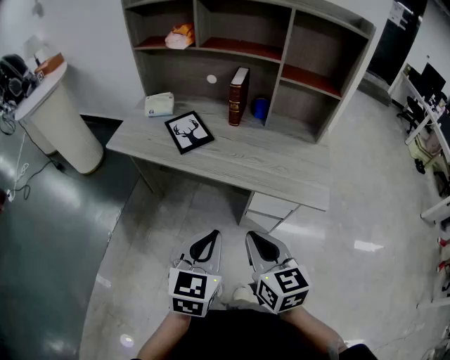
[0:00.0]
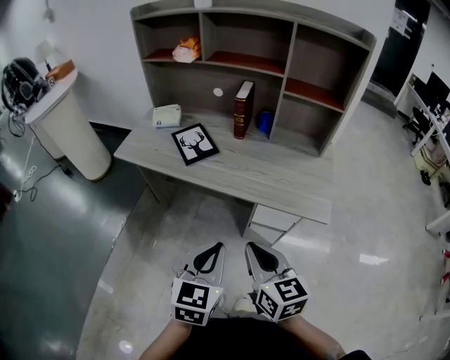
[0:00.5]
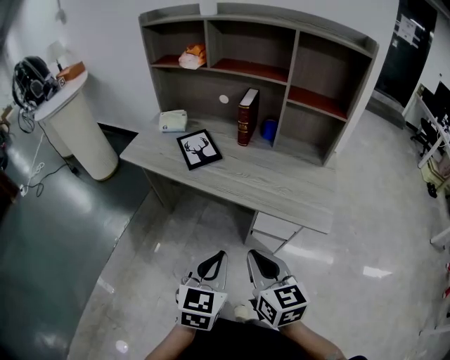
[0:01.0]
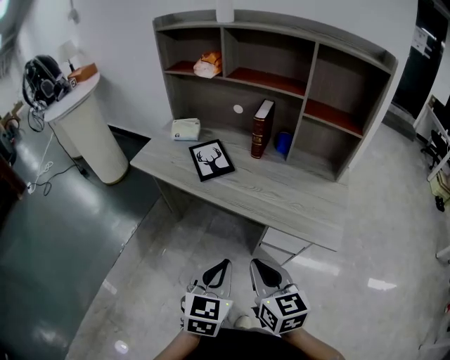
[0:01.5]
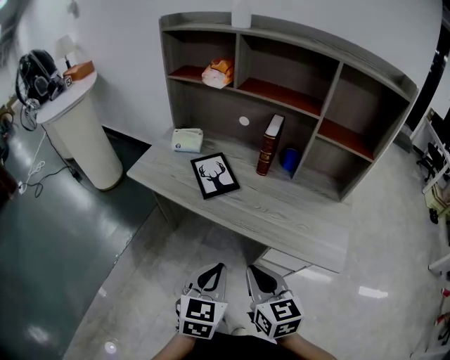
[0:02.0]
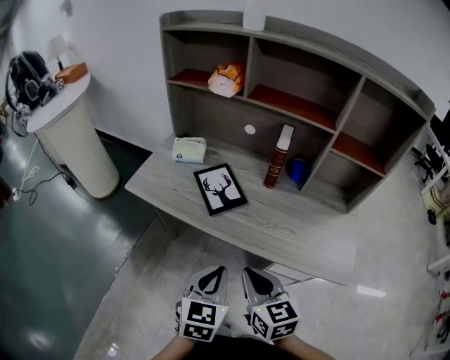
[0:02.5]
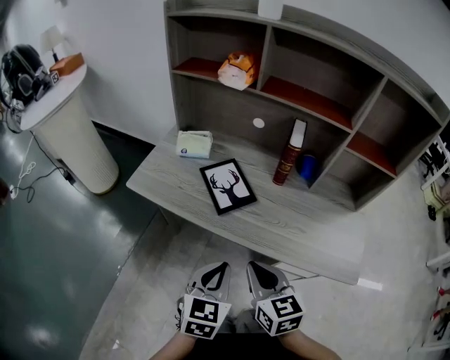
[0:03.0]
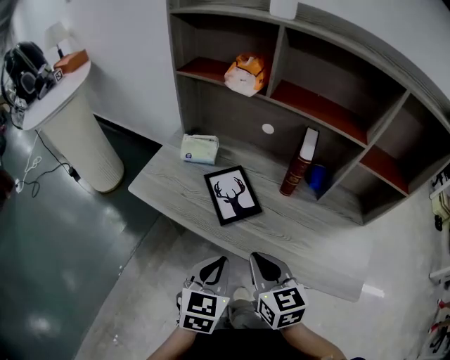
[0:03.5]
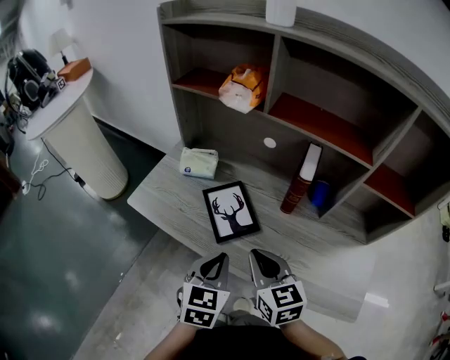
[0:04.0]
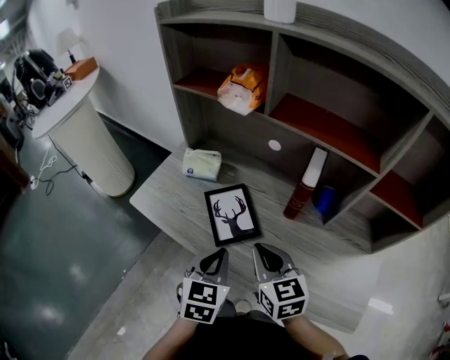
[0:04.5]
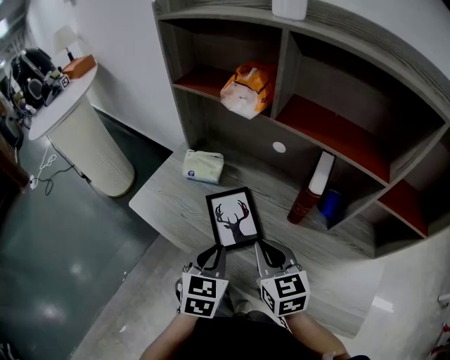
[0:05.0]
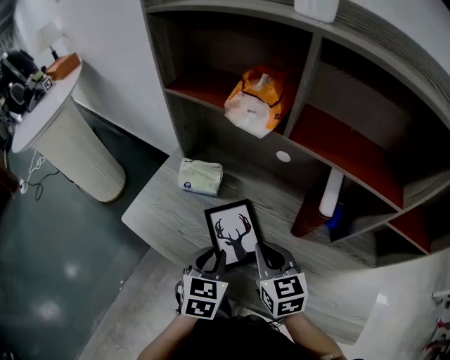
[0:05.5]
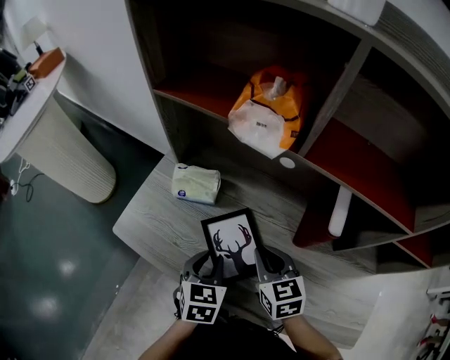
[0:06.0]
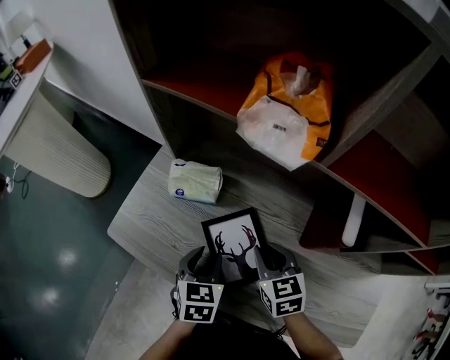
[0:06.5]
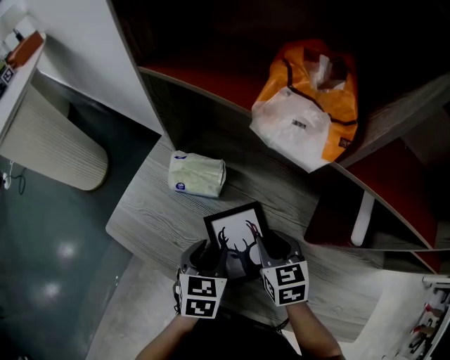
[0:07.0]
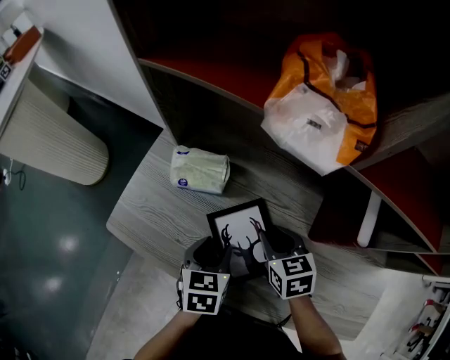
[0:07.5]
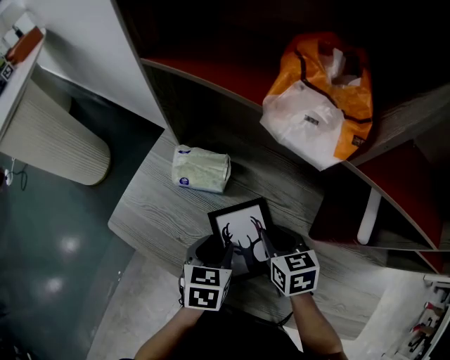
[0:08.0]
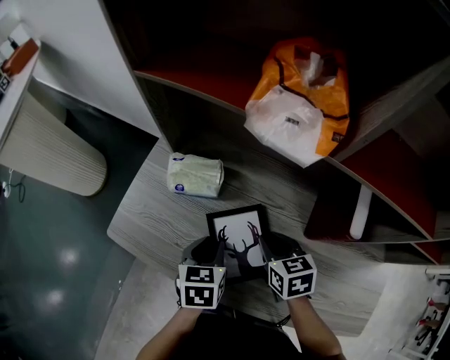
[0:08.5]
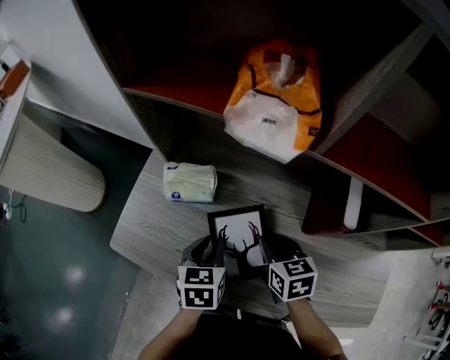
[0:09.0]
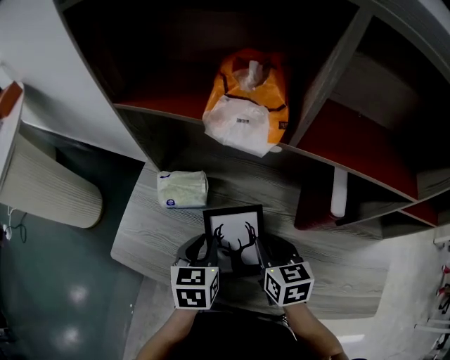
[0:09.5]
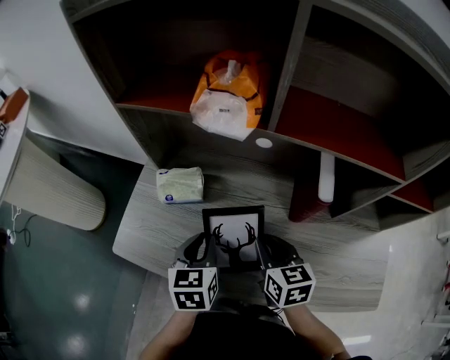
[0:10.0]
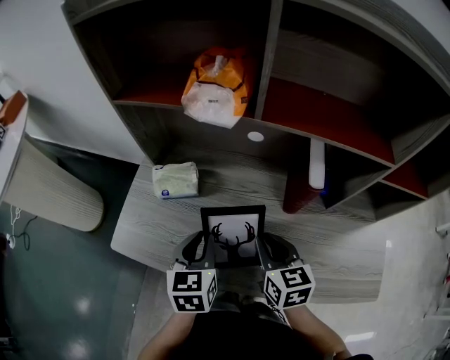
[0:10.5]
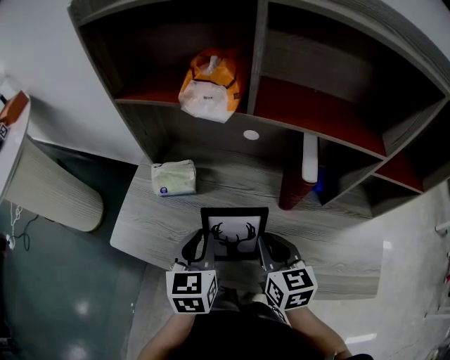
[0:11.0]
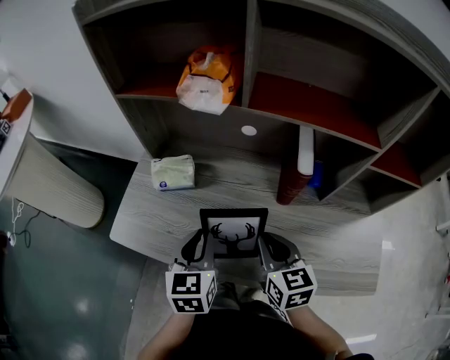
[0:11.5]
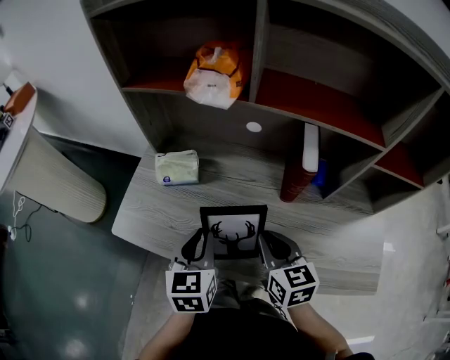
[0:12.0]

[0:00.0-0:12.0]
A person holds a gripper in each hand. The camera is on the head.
0:00.0 to 0:02.0: Both grippers travel together forward, roughly 10 cm.
0:02.0 to 0:04.0: Both grippers travel together forward, approximately 25 cm.
0:04.0 to 0:06.0: Both grippers travel together forward and downward, about 20 cm. The left gripper opens.
0:06.0 to 0:08.0: The left gripper shifts by roughly 5 cm, and opens. Meanwhile the right gripper moves downward, about 5 cm.
0:08.0 to 0:10.0: The right gripper is displaced upward and backward by some 10 cm, and changes its angle by roughly 20 degrees. The left gripper heads upward, covering about 10 cm, and closes.
0:10.0 to 0:12.0: The two grippers go some 5 cm backward.

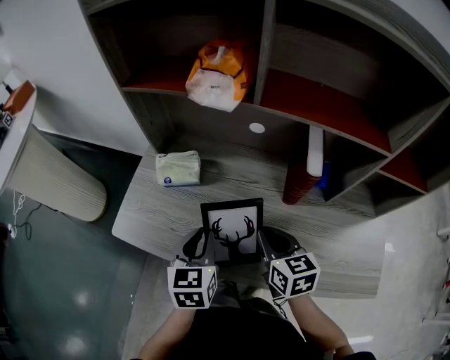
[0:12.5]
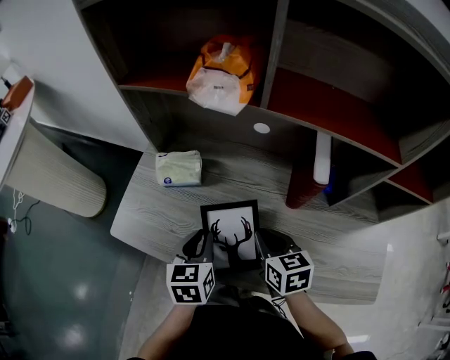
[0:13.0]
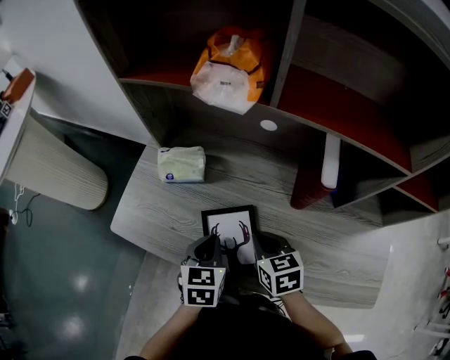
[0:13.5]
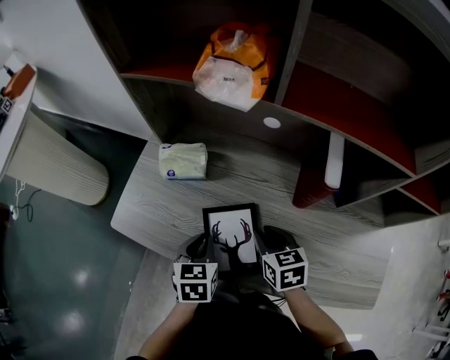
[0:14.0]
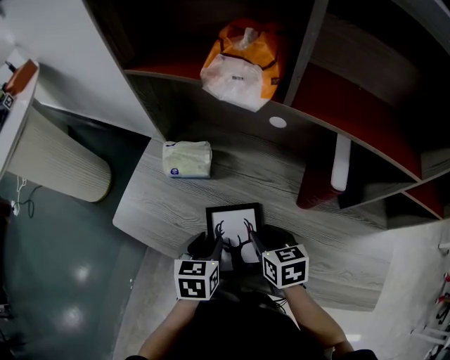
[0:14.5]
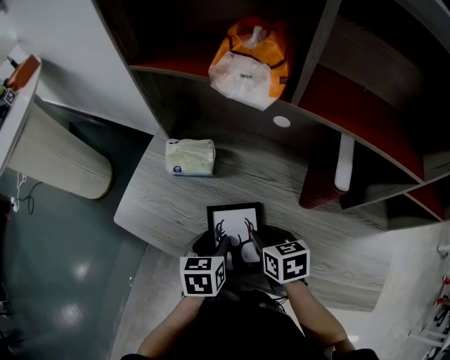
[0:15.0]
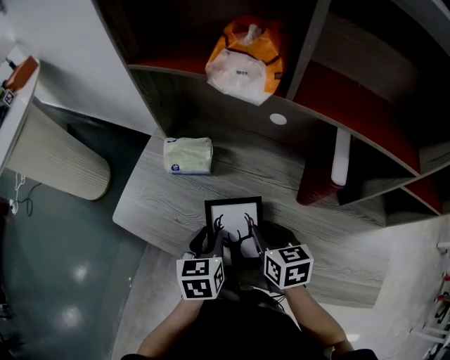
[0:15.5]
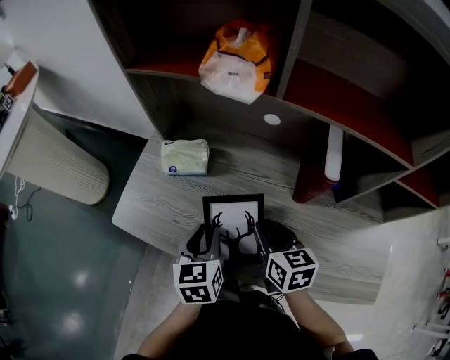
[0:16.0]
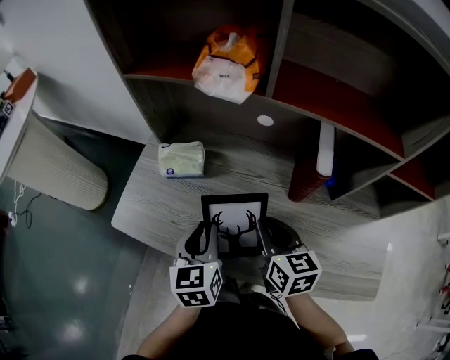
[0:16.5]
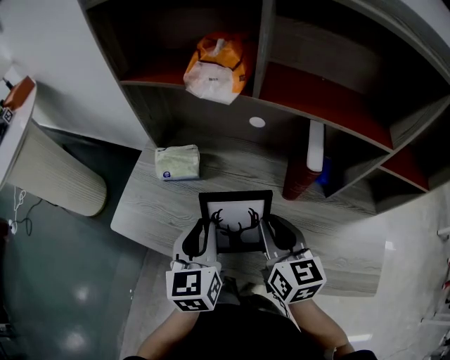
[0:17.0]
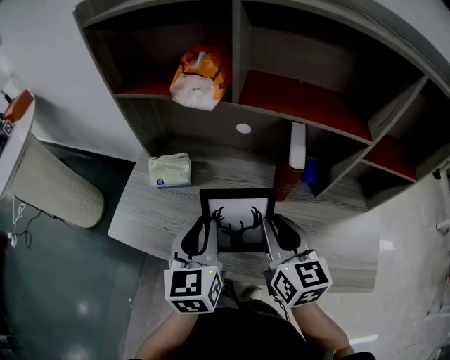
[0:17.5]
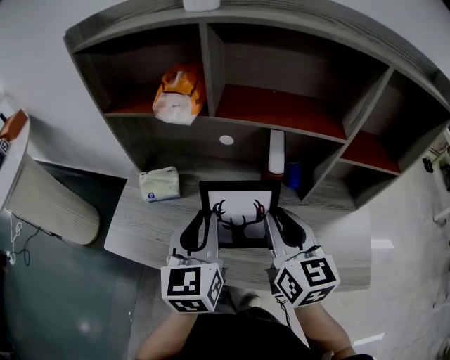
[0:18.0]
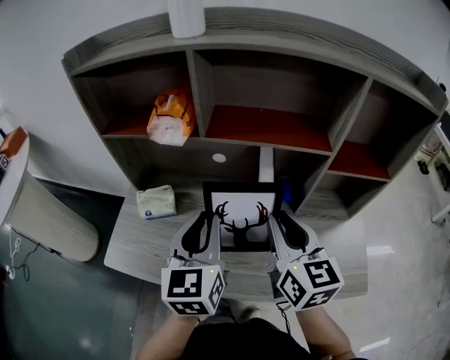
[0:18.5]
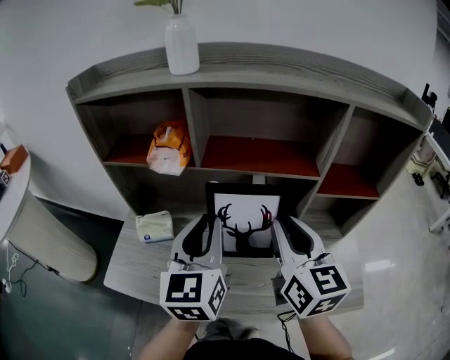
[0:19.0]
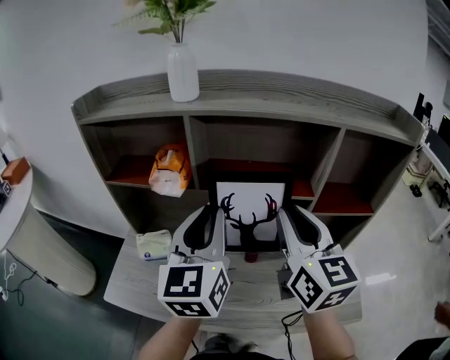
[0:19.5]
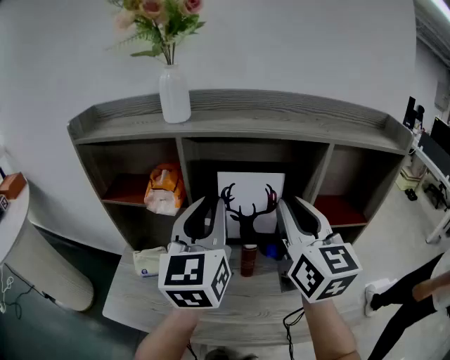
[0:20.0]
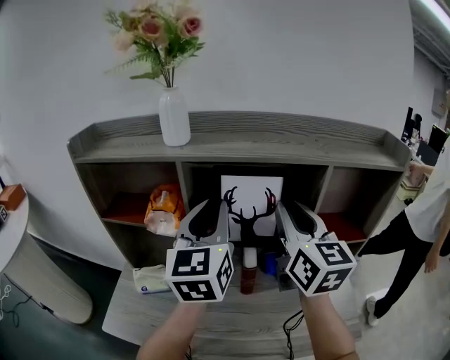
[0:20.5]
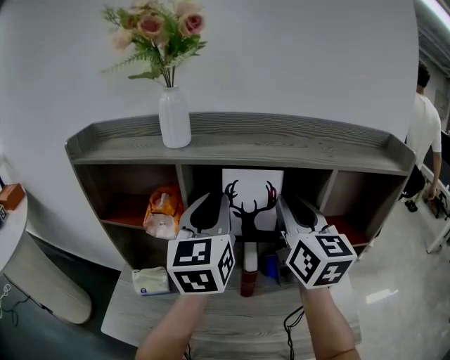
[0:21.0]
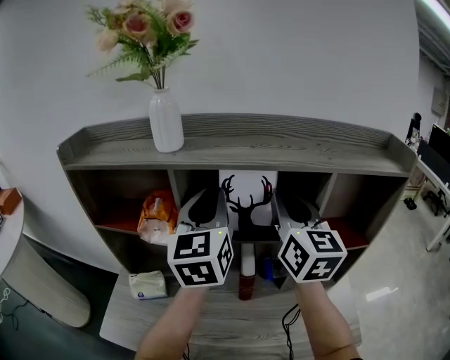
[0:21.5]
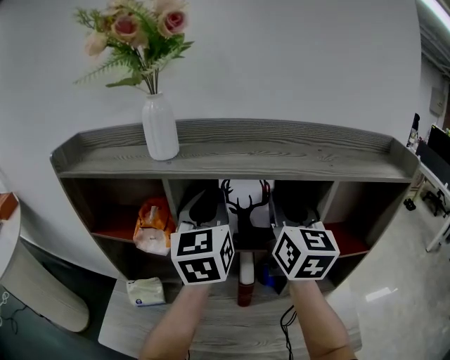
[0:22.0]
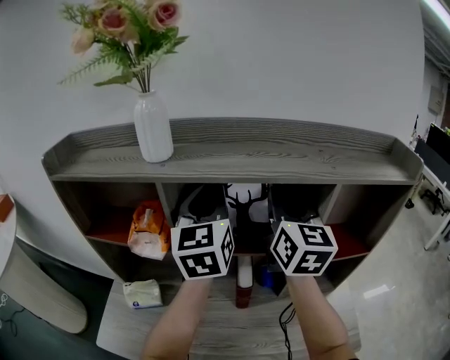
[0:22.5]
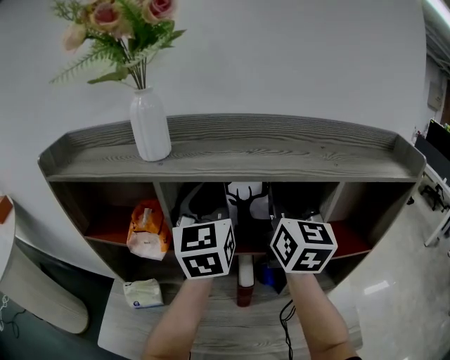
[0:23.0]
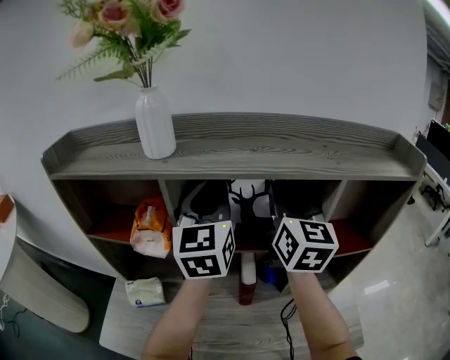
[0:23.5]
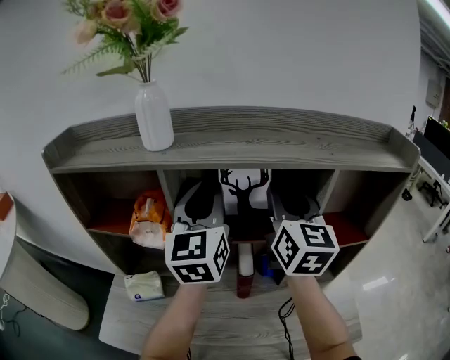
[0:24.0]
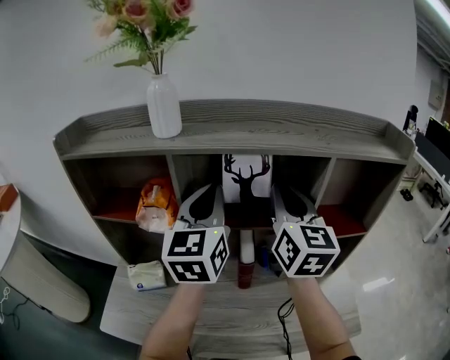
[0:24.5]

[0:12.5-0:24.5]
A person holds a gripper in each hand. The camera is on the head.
0:12.5 to 0:14.5: Both grippers travel together downward, roughly 10 cm. The left gripper opens. Meanwhile the right gripper opens.
0:14.5 to 0:16.5: Both grippers move upward, roughly 10 cm. The left gripper closes its fingers, while the right gripper swivels roughly 20 degrees.
0:16.5 to 0:18.5: Both grippers travel together upward and to the right, about 20 cm. The left gripper rotates roughly 20 degrees. Meanwhile the right gripper rotates some 20 degrees.
0:18.5 to 0:20.5: The grippers both shift upward and forward by about 20 cm.
0:20.5 to 0:22.5: The grippers both shift forward by about 10 cm.
0:22.5 to 0:24.5: The two grippers go roughly 5 cm backward.

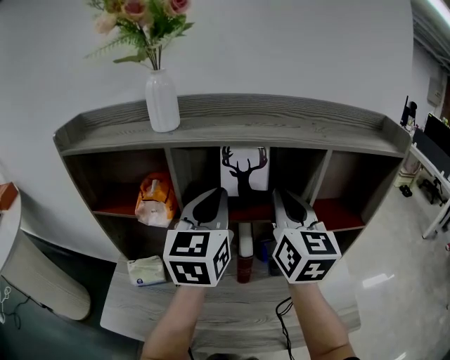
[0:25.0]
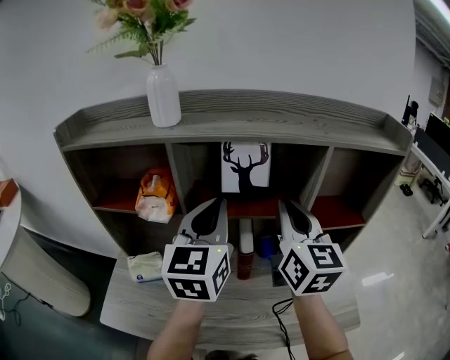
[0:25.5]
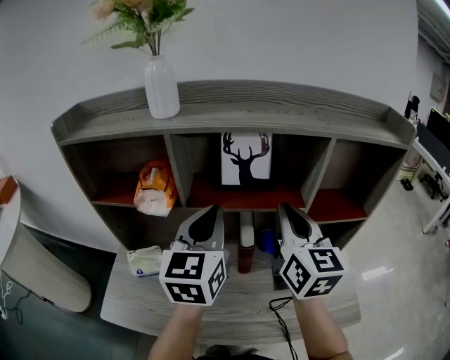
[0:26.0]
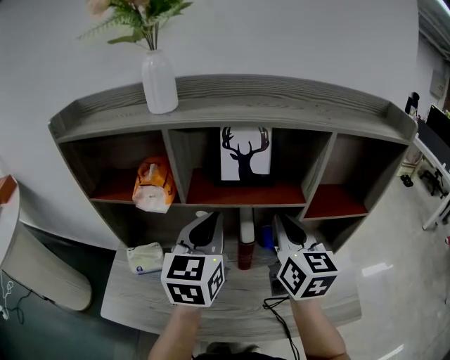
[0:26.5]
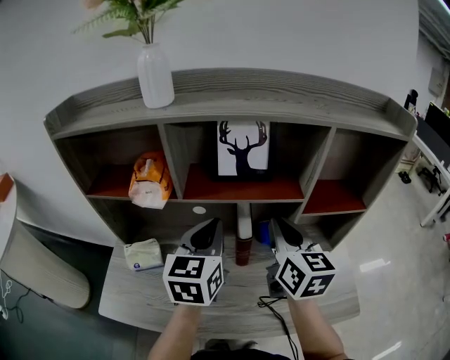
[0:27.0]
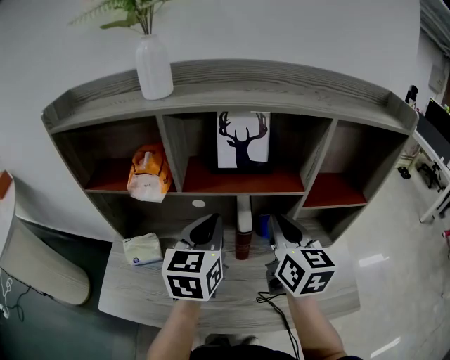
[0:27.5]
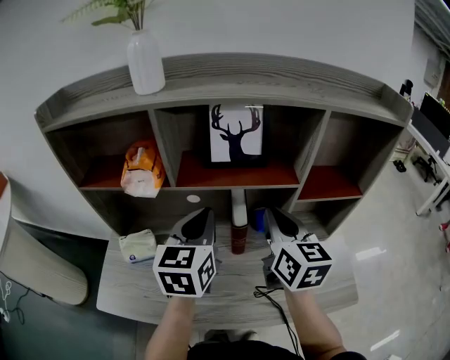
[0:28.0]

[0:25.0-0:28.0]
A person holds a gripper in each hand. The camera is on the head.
0:25.0 to 0:26.5: Both grippers move downward, about 10 cm.
0:26.5 to 0:28.0: The grippers move only a little.
